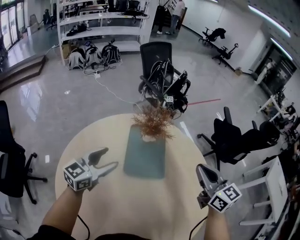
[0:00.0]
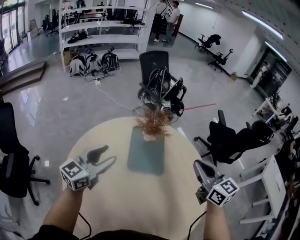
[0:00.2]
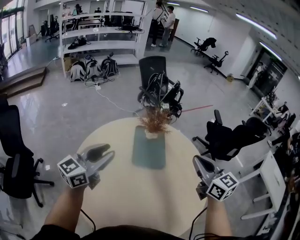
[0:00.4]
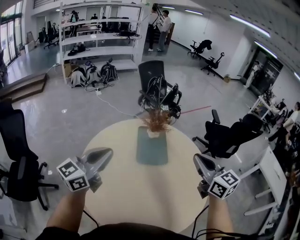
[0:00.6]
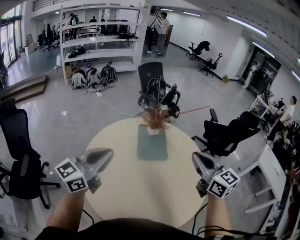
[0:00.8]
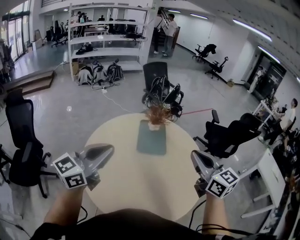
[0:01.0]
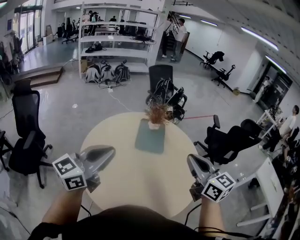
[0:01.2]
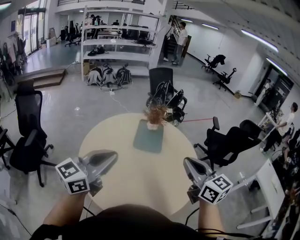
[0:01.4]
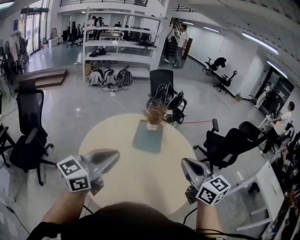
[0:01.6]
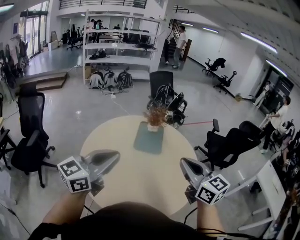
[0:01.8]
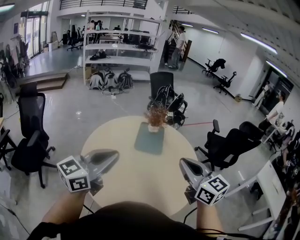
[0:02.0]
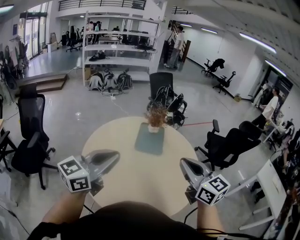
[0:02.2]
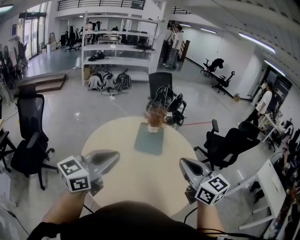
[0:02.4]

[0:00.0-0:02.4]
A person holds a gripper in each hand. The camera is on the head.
0:00.0 to 0:01.2: Both grippers travel together backward and upward, roughly 40 cm. The left gripper closes up.
0:01.2 to 0:02.4: The grippers both shift backward by roughly 5 cm.

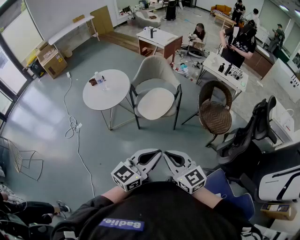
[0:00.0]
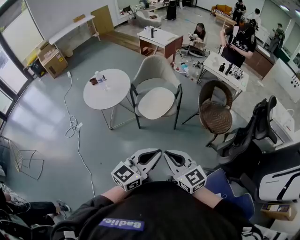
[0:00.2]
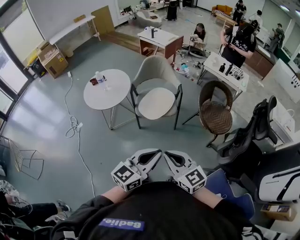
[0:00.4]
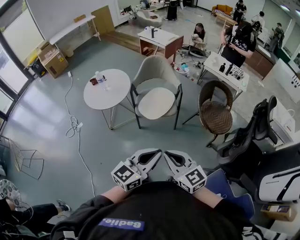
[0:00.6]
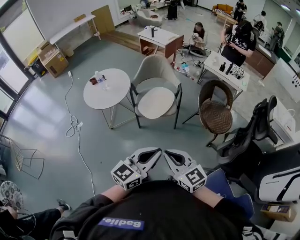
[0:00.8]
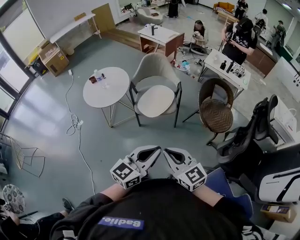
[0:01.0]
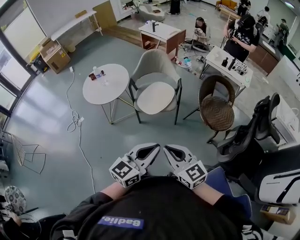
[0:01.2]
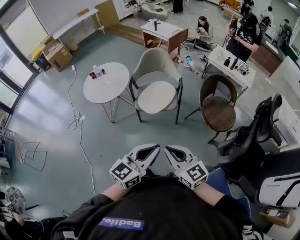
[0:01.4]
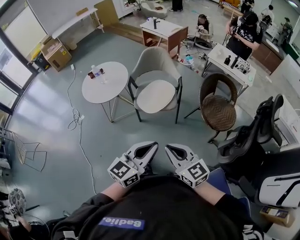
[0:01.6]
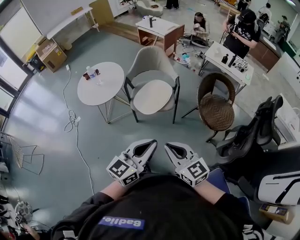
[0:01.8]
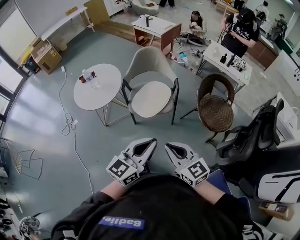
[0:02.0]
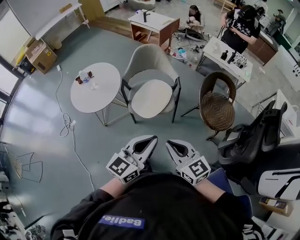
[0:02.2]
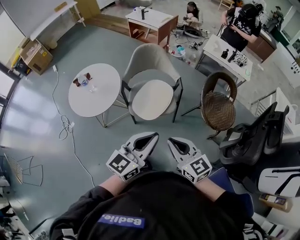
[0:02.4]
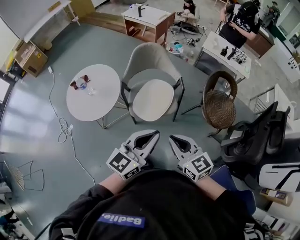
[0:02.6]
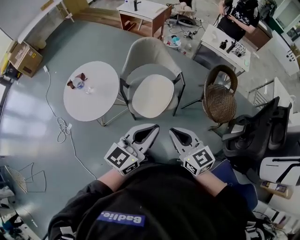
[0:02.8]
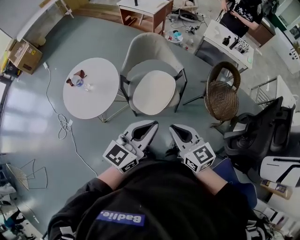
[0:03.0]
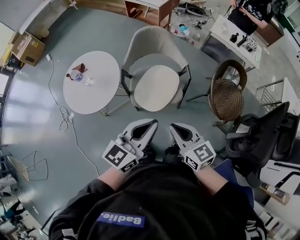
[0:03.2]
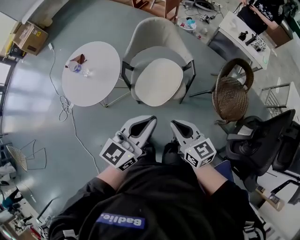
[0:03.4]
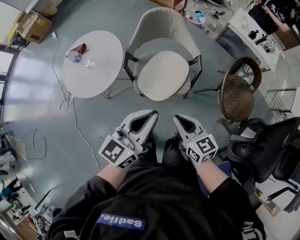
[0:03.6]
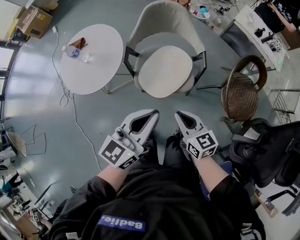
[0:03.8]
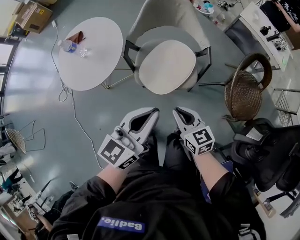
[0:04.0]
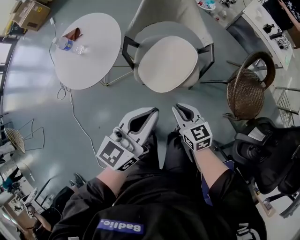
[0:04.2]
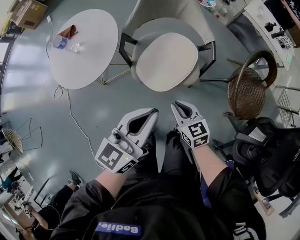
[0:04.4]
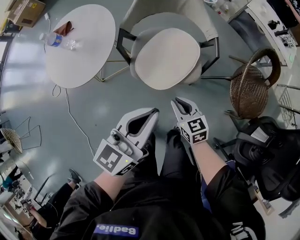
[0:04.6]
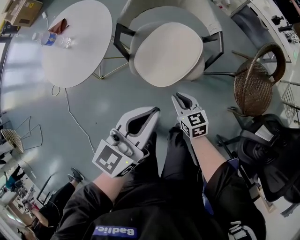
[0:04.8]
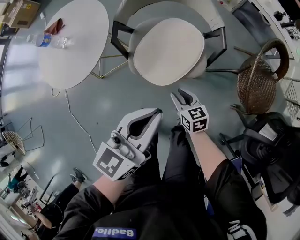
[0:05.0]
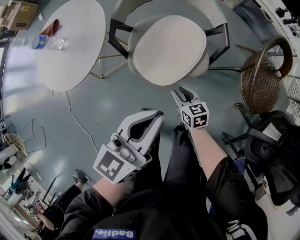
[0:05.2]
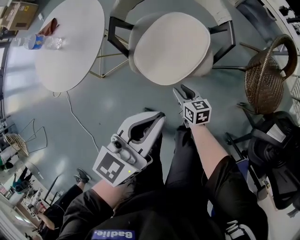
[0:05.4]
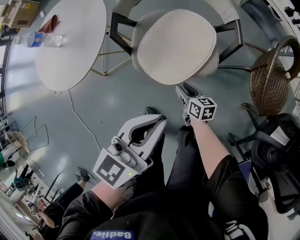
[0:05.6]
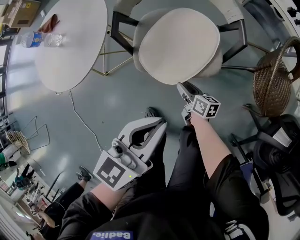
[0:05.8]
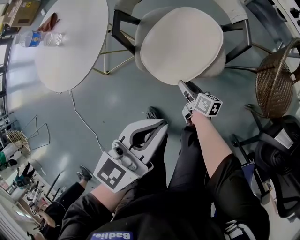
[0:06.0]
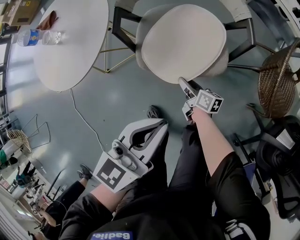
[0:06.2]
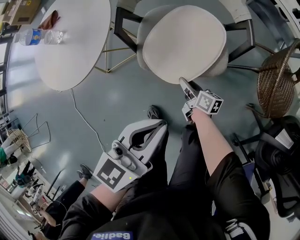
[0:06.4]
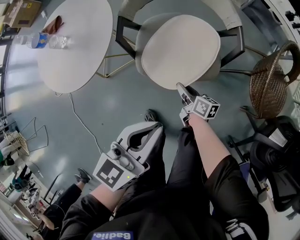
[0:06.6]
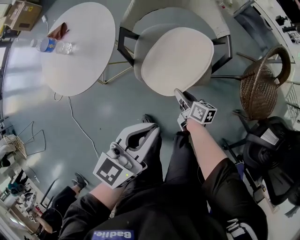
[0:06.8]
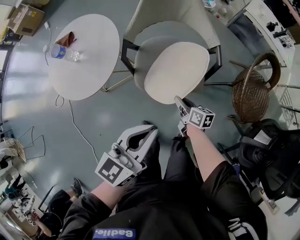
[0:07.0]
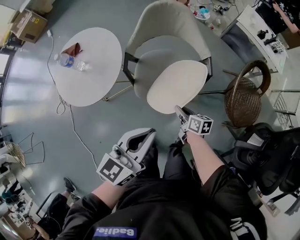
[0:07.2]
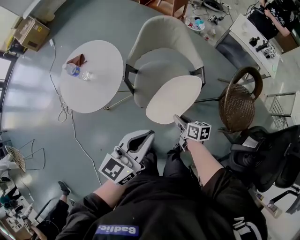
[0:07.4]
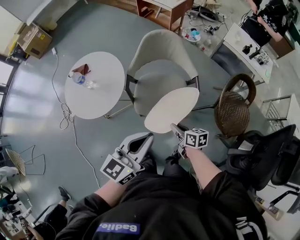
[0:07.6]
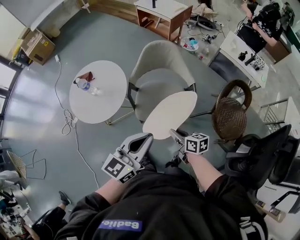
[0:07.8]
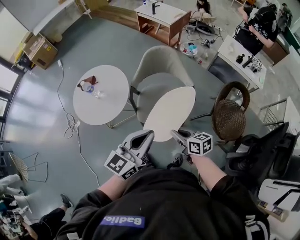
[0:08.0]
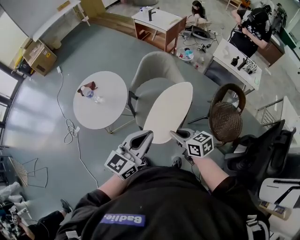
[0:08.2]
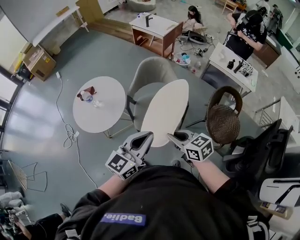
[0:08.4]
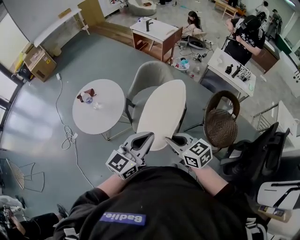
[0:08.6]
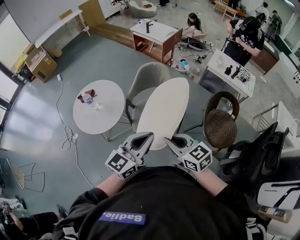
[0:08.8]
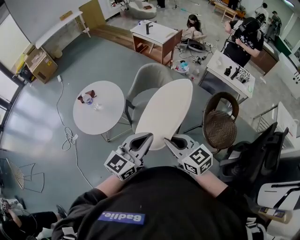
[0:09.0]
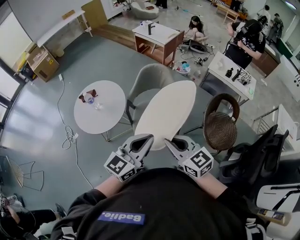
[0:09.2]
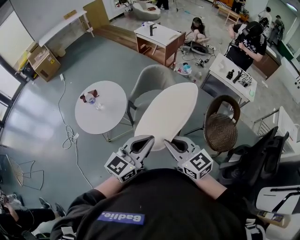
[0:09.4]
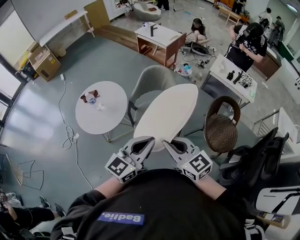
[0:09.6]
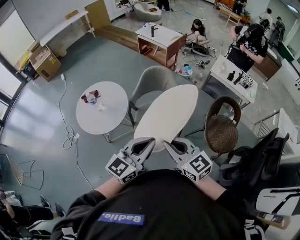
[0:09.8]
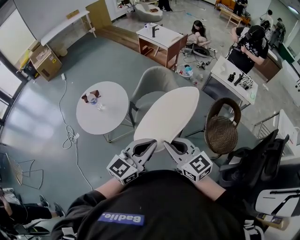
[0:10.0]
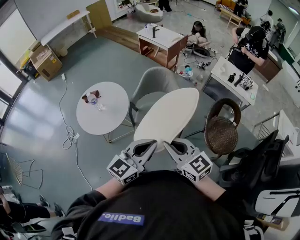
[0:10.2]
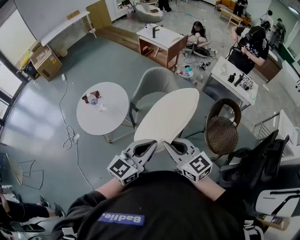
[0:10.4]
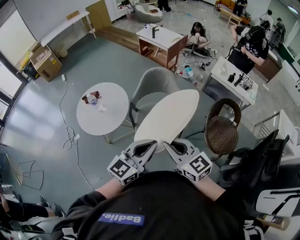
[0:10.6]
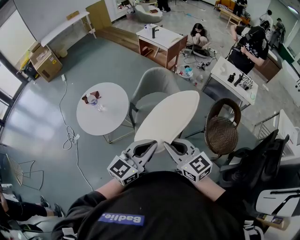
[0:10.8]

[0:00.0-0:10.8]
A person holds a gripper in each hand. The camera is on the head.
0:00.0 to 0:01.6: The left gripper ends up about 5 cm from where it was; the right gripper goes some 5 cm to the right.
0:01.6 to 0:03.0: The two grippers go some 25 cm forward and to the left.
0:03.0 to 0:04.6: The left gripper goes approximately 15 cm downward; the right gripper goes about 30 cm downward, and rotates approximately 20 degrees.
0:04.6 to 0:06.2: The right gripper heads downward, covering approximately 20 cm, twists approximately 50 degrees clockwise, seen from behind, and opens its fingers; the left gripper travels downward by some 10 cm.
0:06.2 to 0:07.8: The two grippers go about 30 cm upward. The right gripper rotates about 20 degrees, and closes its fingers.
0:07.8 to 0:09.2: The right gripper goes approximately 25 cm upward, and turns by approximately 40 degrees. The left gripper heads upward, covering approximately 5 cm.
0:09.2 to 0:10.8: The grippers make only small movements.

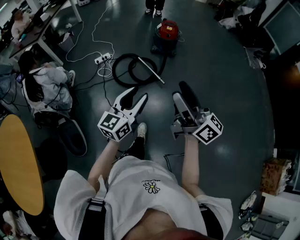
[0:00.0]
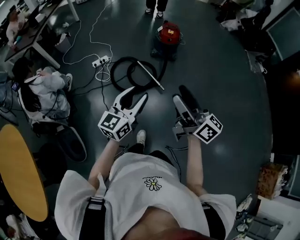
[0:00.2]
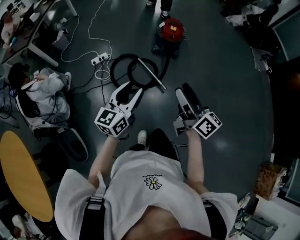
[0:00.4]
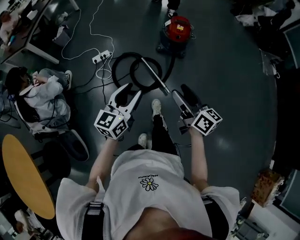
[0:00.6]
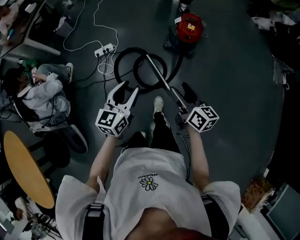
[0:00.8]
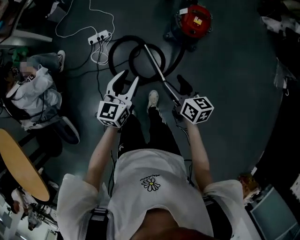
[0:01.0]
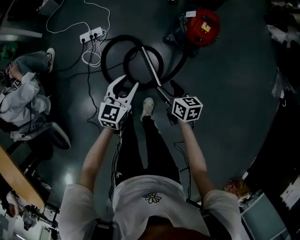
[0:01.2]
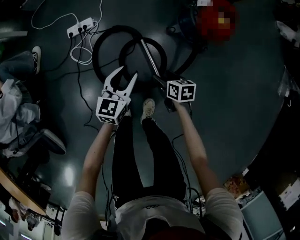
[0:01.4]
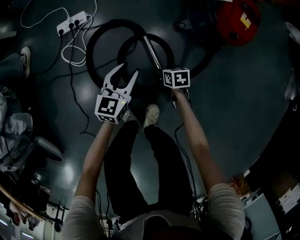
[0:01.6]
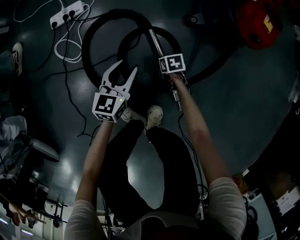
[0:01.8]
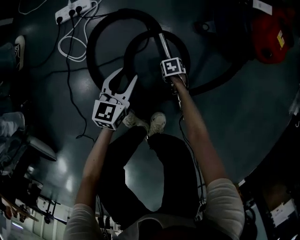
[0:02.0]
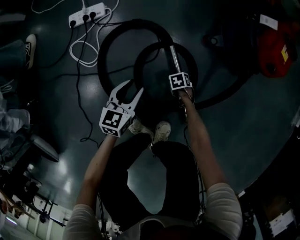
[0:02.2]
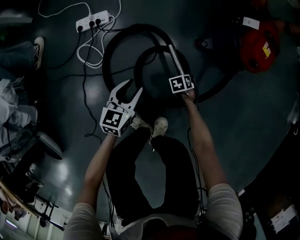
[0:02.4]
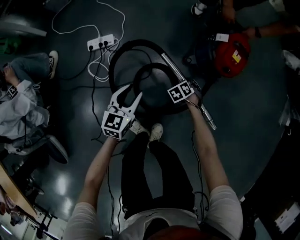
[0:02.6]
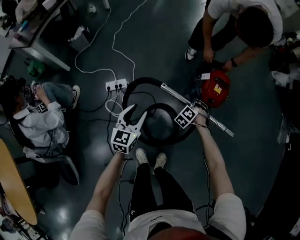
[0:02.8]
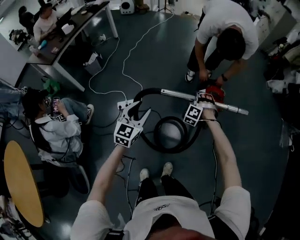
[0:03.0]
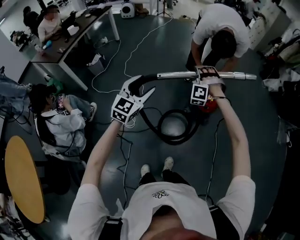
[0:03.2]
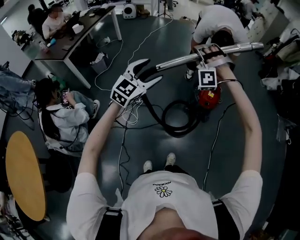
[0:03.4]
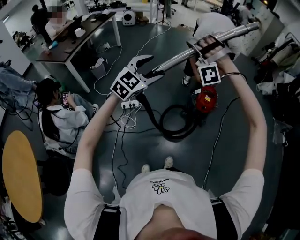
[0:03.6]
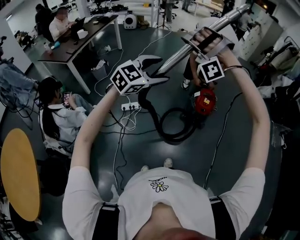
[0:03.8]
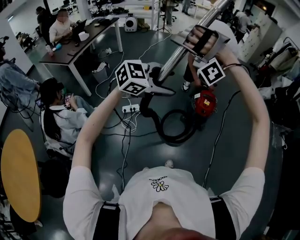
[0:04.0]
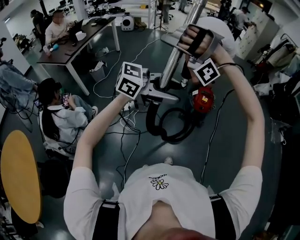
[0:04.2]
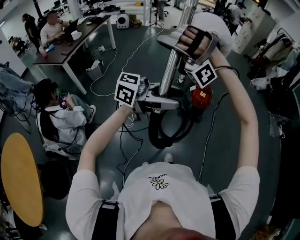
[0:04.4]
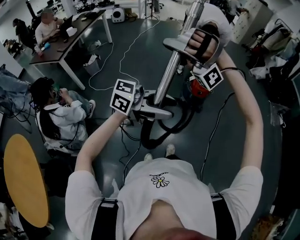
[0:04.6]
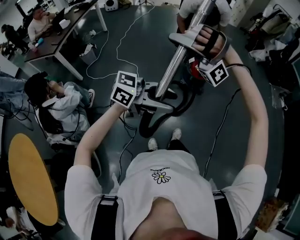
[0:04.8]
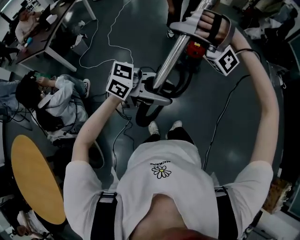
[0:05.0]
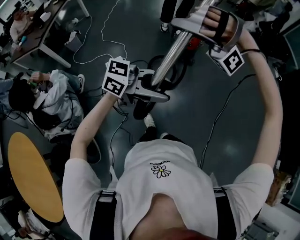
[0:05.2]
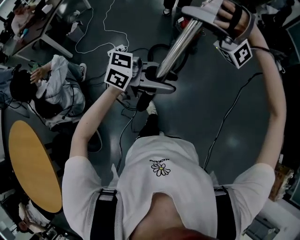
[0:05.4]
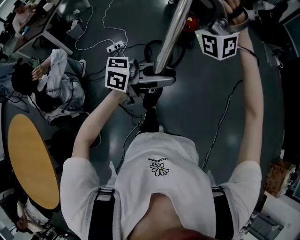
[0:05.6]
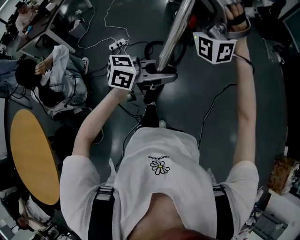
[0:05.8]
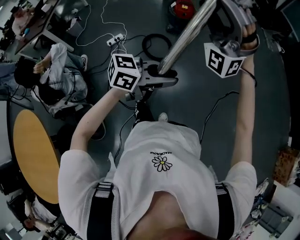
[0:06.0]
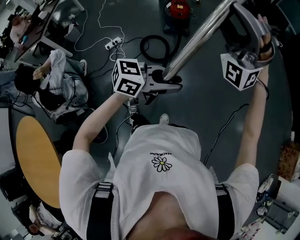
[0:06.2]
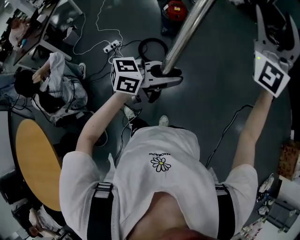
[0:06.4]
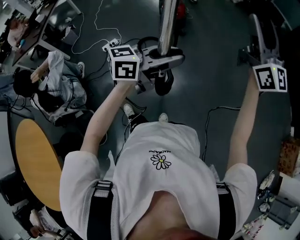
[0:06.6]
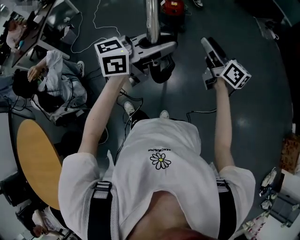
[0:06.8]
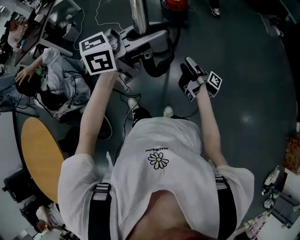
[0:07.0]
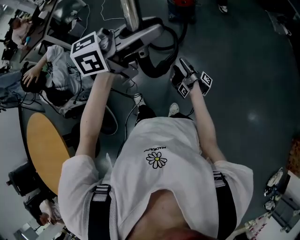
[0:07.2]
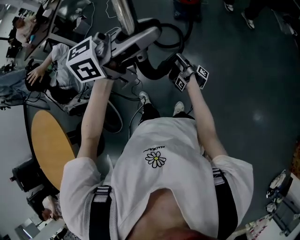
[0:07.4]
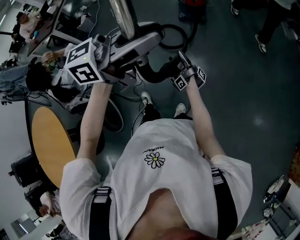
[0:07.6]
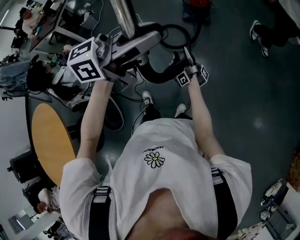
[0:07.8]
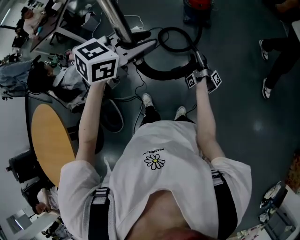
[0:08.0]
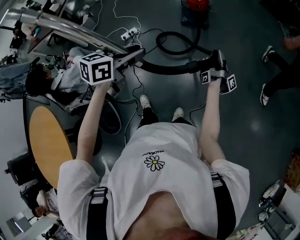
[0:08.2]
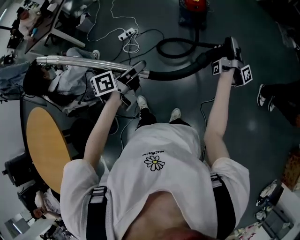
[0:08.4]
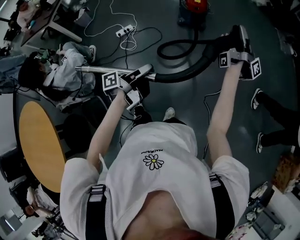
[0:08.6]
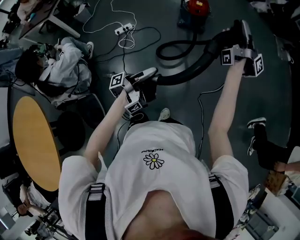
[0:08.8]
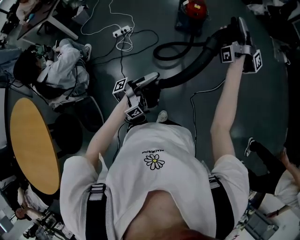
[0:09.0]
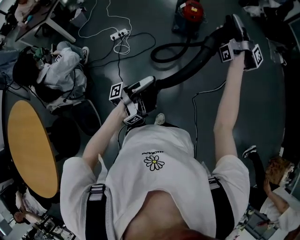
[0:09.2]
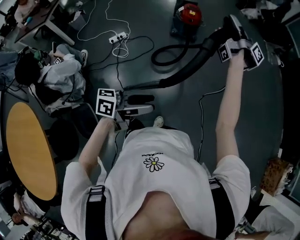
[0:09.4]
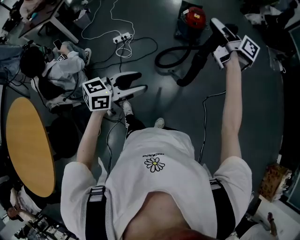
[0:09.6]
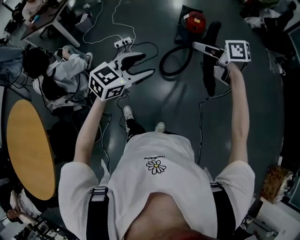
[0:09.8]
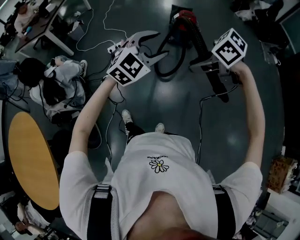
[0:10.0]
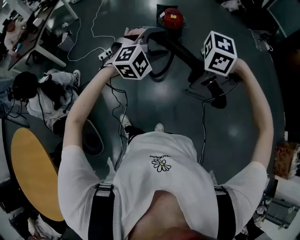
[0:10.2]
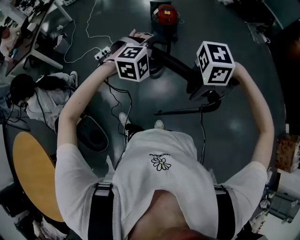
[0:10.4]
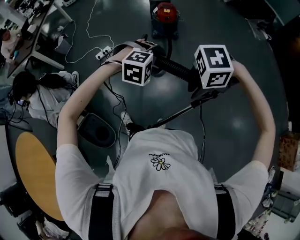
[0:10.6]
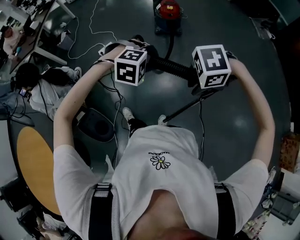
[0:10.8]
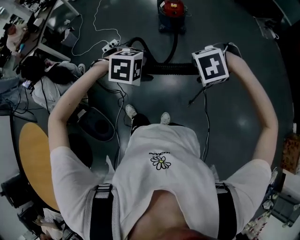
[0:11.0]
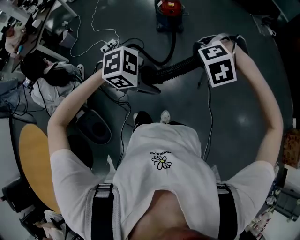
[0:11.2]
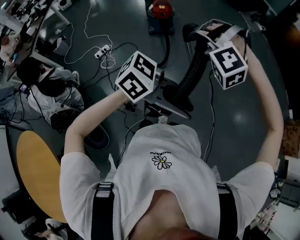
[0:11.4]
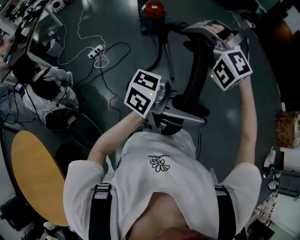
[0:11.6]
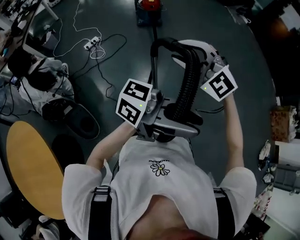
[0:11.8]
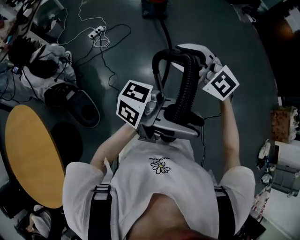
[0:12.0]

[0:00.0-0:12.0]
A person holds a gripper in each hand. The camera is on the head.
0:00.0 to 0:01.6: The left gripper ends up about 90 cm from where it was, and changes its angle by approximately 30 degrees.
0:01.6 to 0:03.0: The left gripper is displaced upward by roughly 50 cm, and swivels some 30 degrees.
0:03.0 to 0:04.4: The left gripper changes place by approximately 40 cm, and changes its angle by some 80 degrees.
0:04.4 to 0:06.0: The left gripper moves about 40 cm, changes its angle by approximately 20 degrees, and closes its fingers.
0:06.0 to 0:07.6: The left gripper shifts roughly 15 cm upward, and turns by approximately 30 degrees.
0:07.6 to 0:09.0: The left gripper shifts some 30 cm downward, and rotates around the line of its fingers by some 90 degrees, counterclockwise from behind.
0:09.0 to 0:10.4: The left gripper moves some 15 cm, tips its fingers downward by about 60 degrees, and opens its fingers.
0:10.4 to 0:12.0: The left gripper moves approximately 60 cm, points its fingers some 70 degrees further upward, and closes up.
